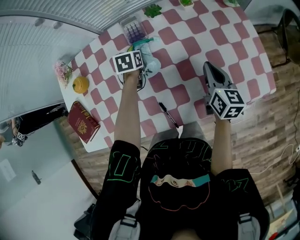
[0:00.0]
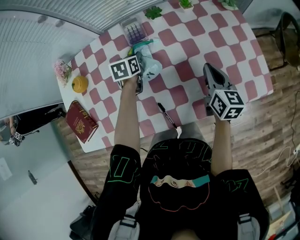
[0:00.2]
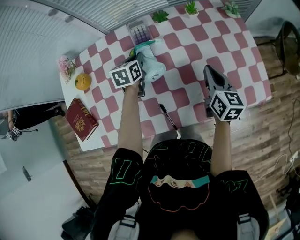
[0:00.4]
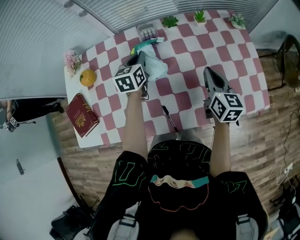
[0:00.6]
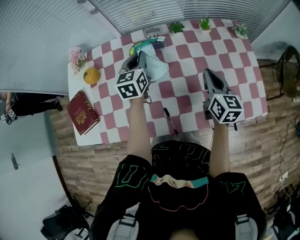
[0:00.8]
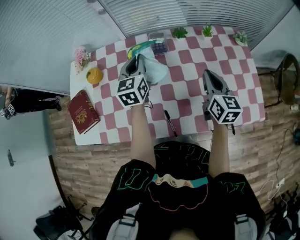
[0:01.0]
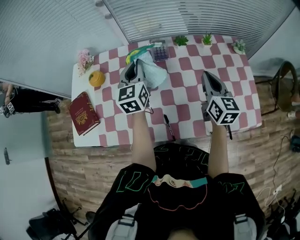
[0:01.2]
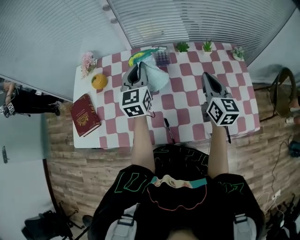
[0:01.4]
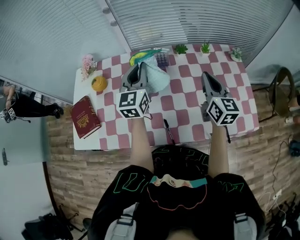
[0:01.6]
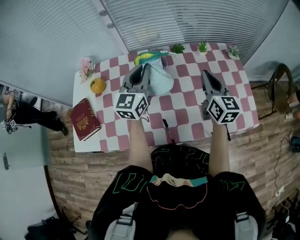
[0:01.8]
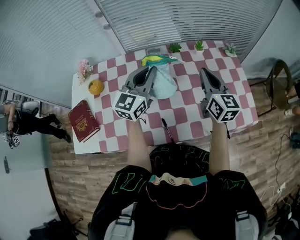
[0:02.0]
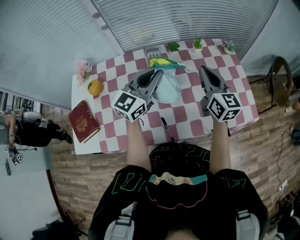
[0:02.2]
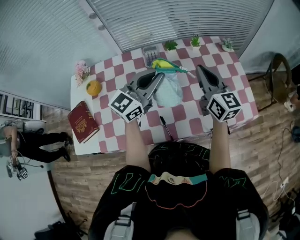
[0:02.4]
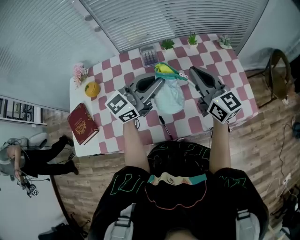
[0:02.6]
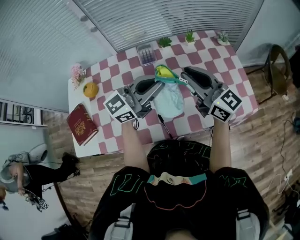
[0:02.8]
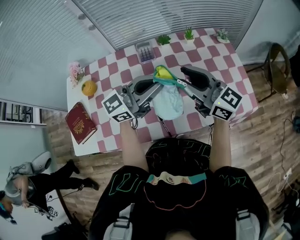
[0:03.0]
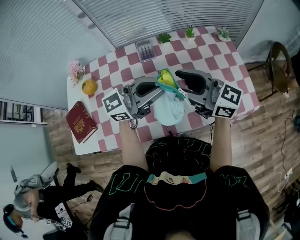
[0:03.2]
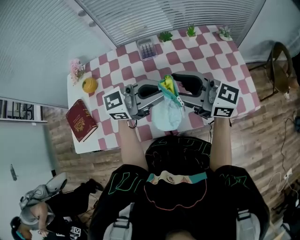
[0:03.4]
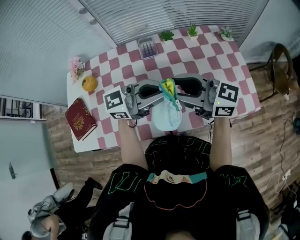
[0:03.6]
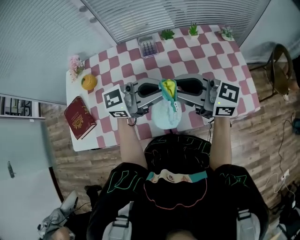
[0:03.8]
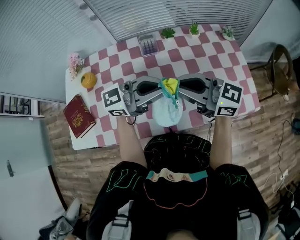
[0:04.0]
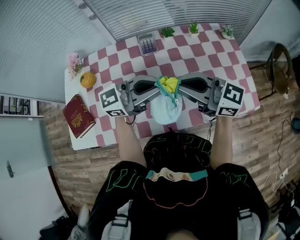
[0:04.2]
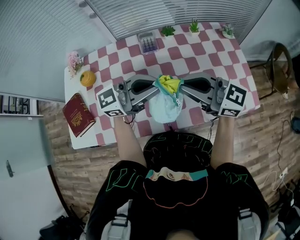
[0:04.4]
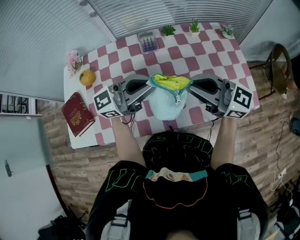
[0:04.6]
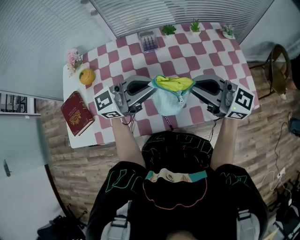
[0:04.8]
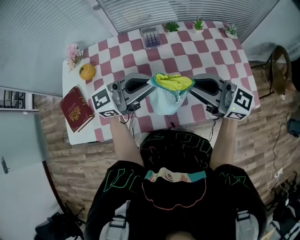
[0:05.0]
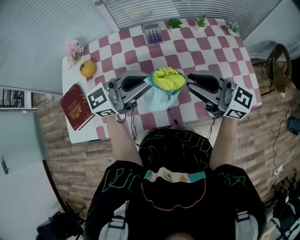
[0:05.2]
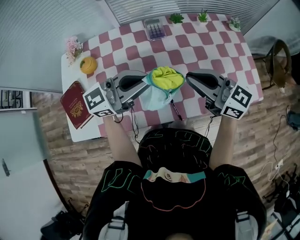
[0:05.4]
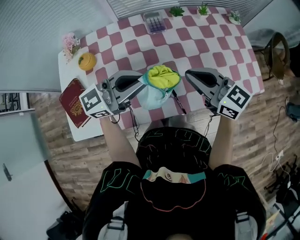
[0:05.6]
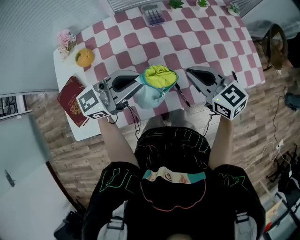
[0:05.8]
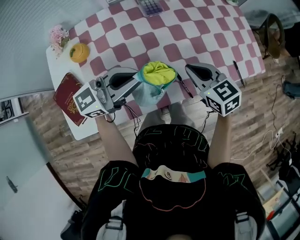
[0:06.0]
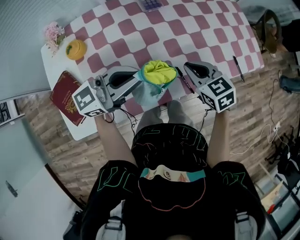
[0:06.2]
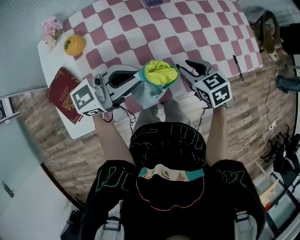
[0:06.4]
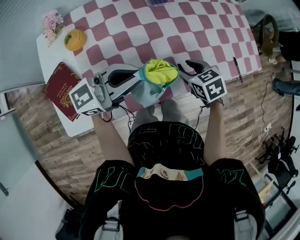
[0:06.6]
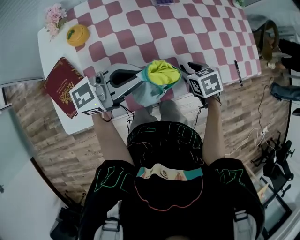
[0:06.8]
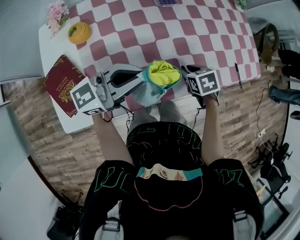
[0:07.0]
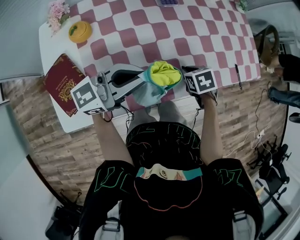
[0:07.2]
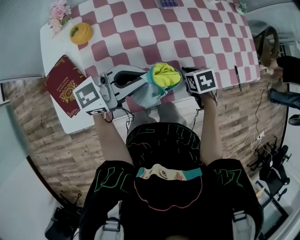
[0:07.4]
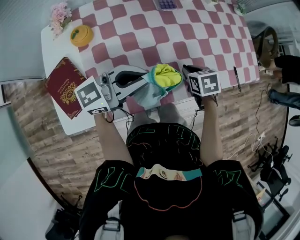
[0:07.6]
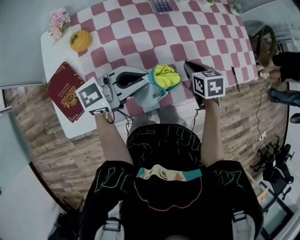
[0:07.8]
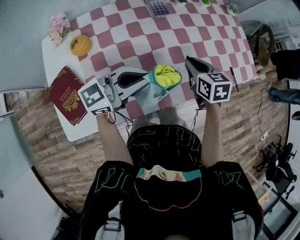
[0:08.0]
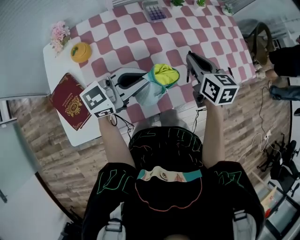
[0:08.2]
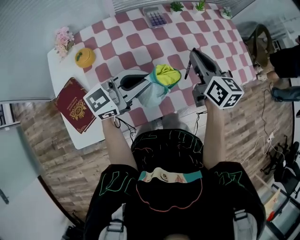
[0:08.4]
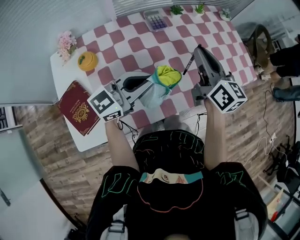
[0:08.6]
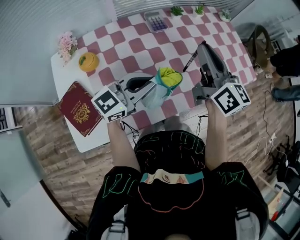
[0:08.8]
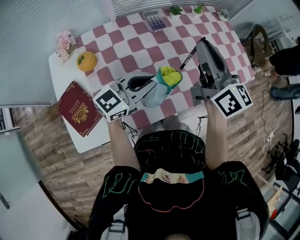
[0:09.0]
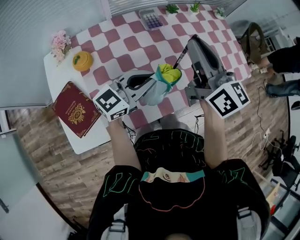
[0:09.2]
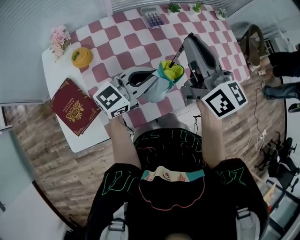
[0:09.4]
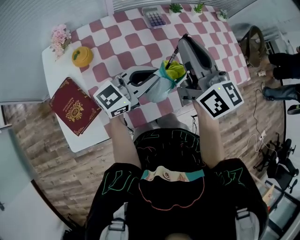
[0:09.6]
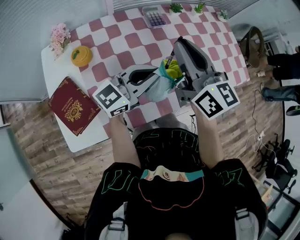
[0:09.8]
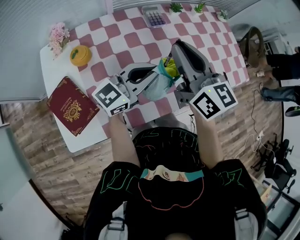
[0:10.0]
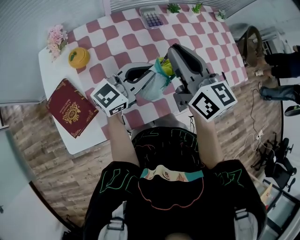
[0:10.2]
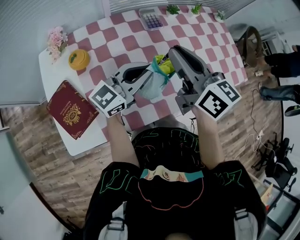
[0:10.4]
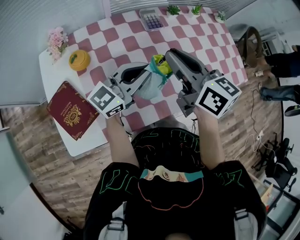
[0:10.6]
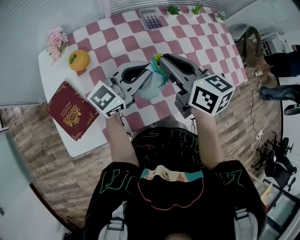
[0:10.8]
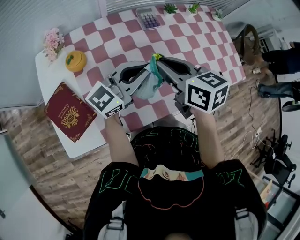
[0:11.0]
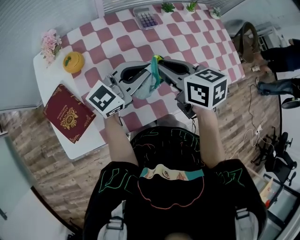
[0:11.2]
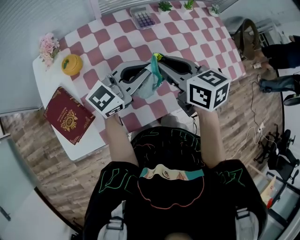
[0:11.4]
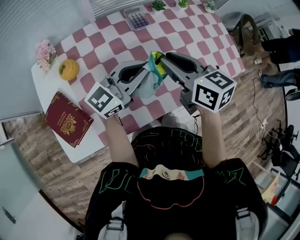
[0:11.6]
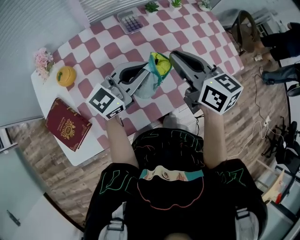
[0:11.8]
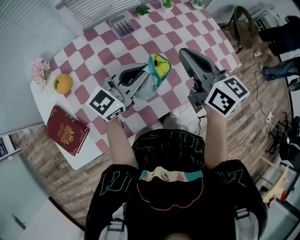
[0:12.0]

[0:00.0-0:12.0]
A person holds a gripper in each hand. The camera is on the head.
0.0 to 1.6 s: The left gripper heads upward, covering approximately 25 cm, and tips its fingers upward by roughly 60 degrees. Meanwhile the right gripper is displaced upward and to the left by roughly 15 cm, and rotates approximately 20 degrees.
1.6 to 3.0 s: The left gripper shifts about 15 cm to the right and backward, and swivels roughly 60 degrees. The right gripper heads backward and upward, covering roughly 10 cm, swivels about 40 degrees, and opens.
3.0 to 4.4 s: The right gripper moves approximately 5 cm, and closes up.
4.4 to 6.0 s: The left gripper ends up approximately 20 cm from where it was. The right gripper travels downward by approximately 15 cm, and points its fingers about 40 degrees further downward.
6.0 to 7.6 s: The right gripper is displaced downward by about 10 cm, angles its fingers downward, by about 30 degrees, and opens and closes again.
7.6 to 9.0 s: The right gripper is displaced upward by about 30 cm, and tilts its fingers roughly 70 degrees upward.
9.0 to 10.4 s: The right gripper is displaced to the left by some 5 cm.
10.4 to 12.0 s: The two grippers go roughly 10 cm to the right.

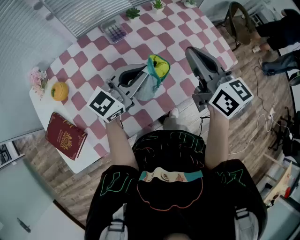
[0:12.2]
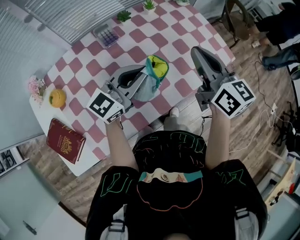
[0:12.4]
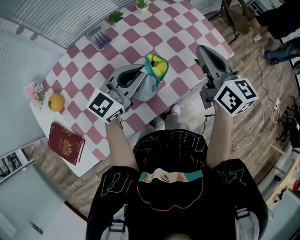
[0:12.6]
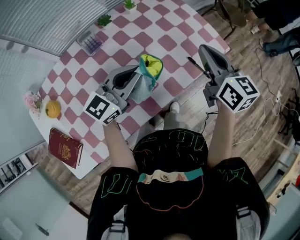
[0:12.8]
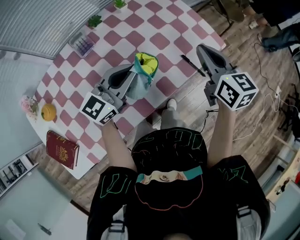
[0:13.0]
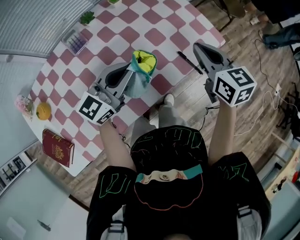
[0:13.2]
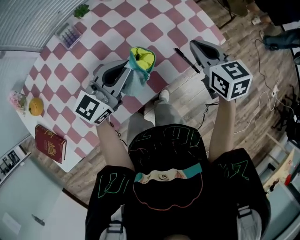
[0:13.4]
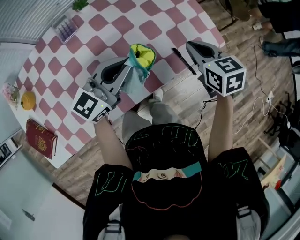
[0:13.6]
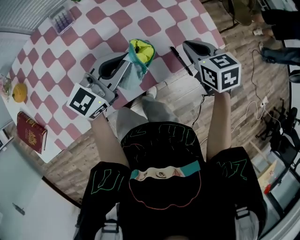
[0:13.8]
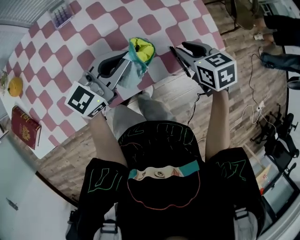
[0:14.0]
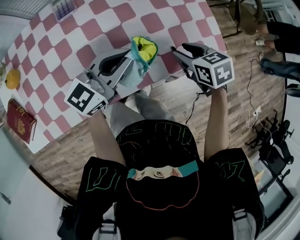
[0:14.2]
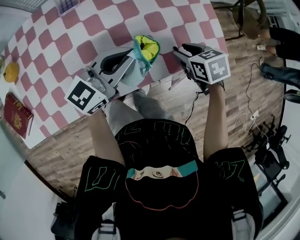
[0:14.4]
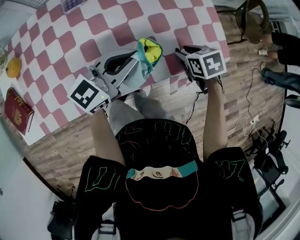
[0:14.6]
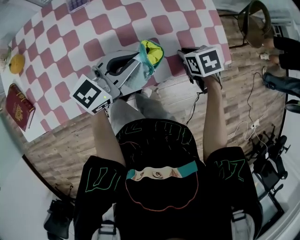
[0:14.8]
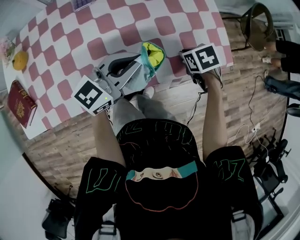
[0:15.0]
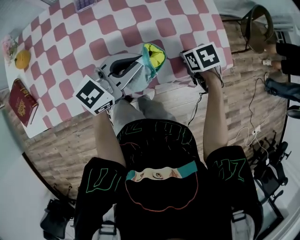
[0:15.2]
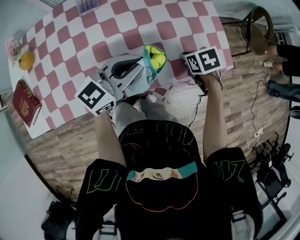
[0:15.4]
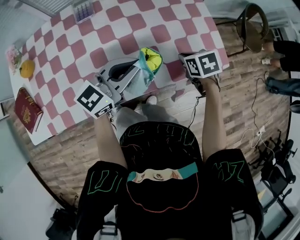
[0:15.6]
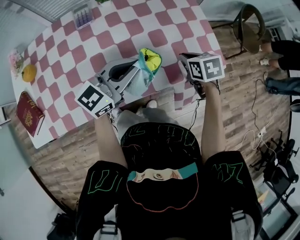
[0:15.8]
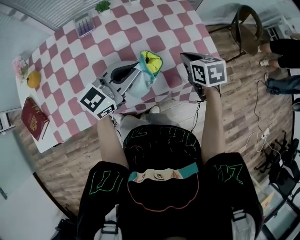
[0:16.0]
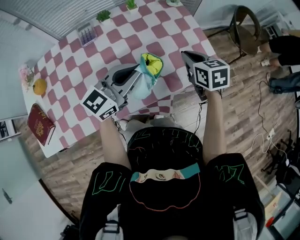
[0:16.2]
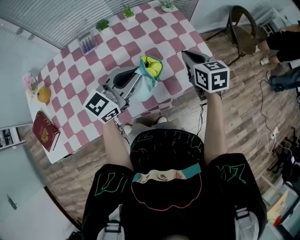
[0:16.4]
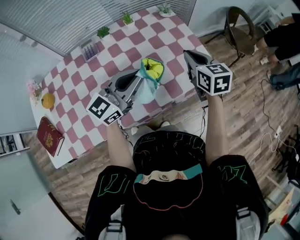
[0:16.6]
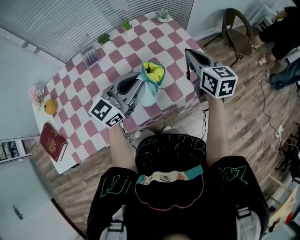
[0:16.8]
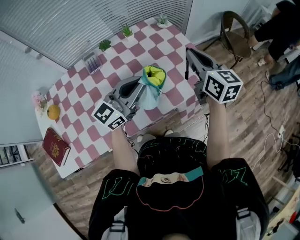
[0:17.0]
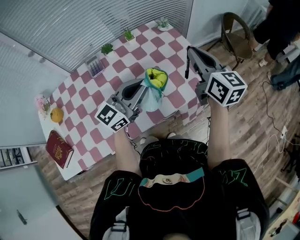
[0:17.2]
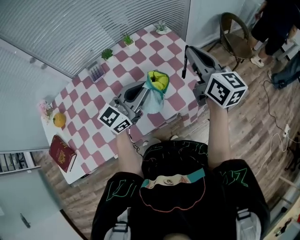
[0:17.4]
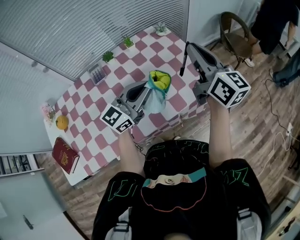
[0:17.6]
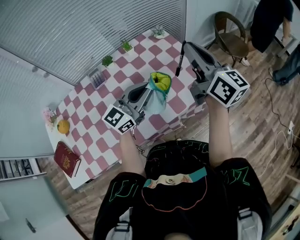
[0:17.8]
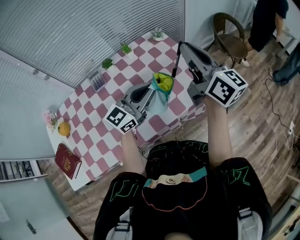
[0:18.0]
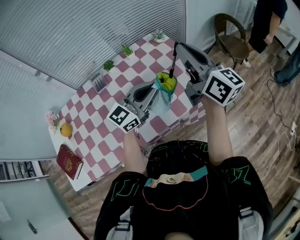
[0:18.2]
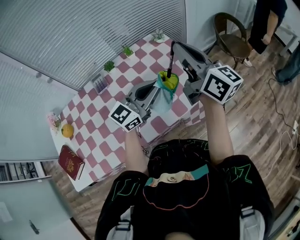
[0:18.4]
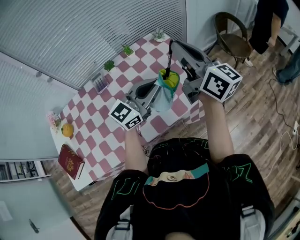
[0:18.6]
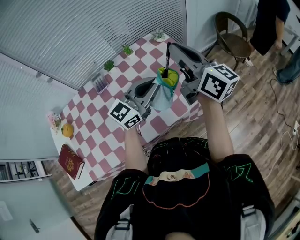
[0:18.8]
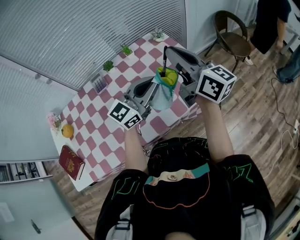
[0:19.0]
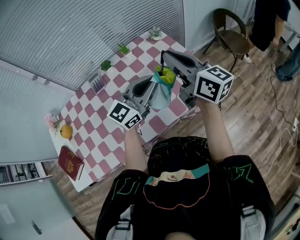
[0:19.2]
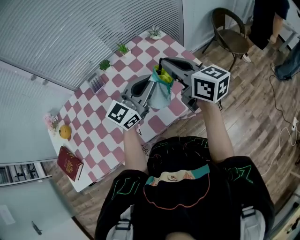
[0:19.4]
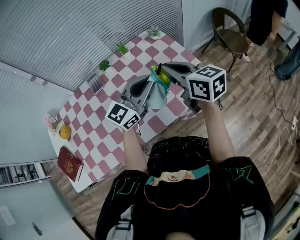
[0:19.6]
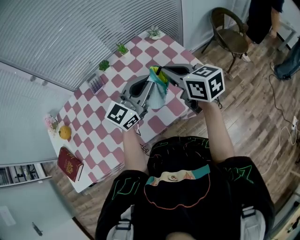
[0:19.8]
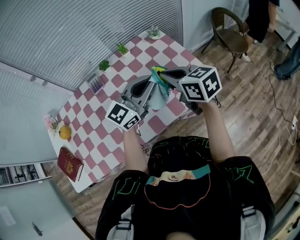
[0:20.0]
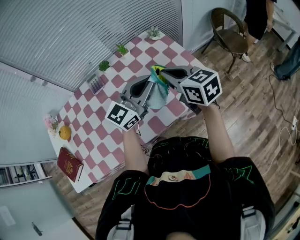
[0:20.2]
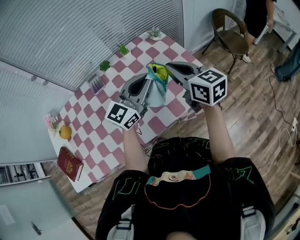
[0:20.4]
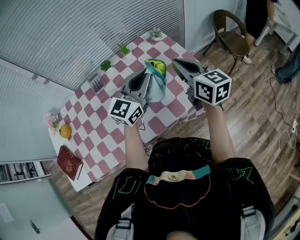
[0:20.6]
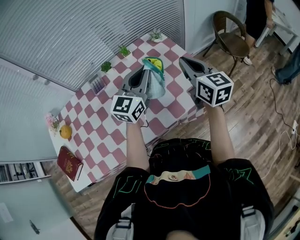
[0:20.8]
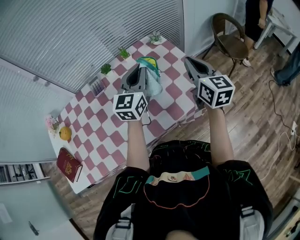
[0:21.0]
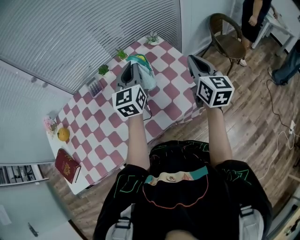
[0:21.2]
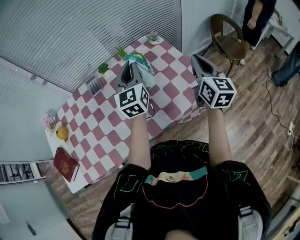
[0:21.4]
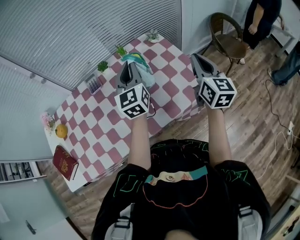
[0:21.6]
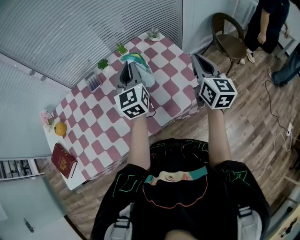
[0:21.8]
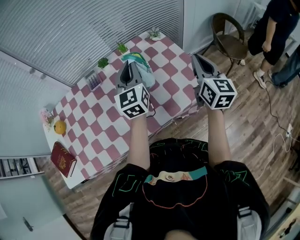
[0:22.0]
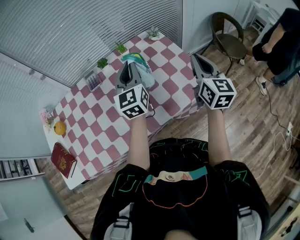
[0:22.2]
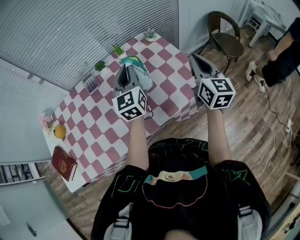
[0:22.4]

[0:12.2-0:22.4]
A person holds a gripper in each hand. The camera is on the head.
12.2 to 13.6 s: The left gripper shifts approximately 15 cm to the right and forward; the right gripper heads to the right, downward and forward, covering roughly 30 cm, and tips its fingers downward by approximately 30 degrees.
13.6 to 15.2 s: The right gripper goes roughly 15 cm downward, turns by approximately 40 degrees, and opens, then closes again.
15.2 to 16.6 s: The right gripper shifts some 20 cm upward, and points its fingers about 50 degrees further upward; the left gripper is displaced upward by about 10 cm.
16.6 to 18.0 s: The left gripper moves about 5 cm, while the right gripper moves upward, about 20 cm, and tips its fingers upward by approximately 40 degrees.
18.0 to 19.4 s: The right gripper heads downward and to the left, covering approximately 10 cm.
19.4 to 21.0 s: The left gripper goes some 5 cm forward, and rotates some 30 degrees. The right gripper is displaced to the right by approximately 10 cm, and changes its angle by some 20 degrees.
21.0 to 22.4 s: The left gripper rotates approximately 20 degrees.

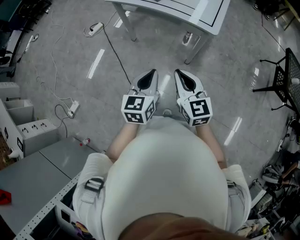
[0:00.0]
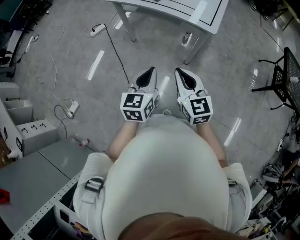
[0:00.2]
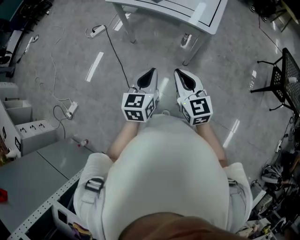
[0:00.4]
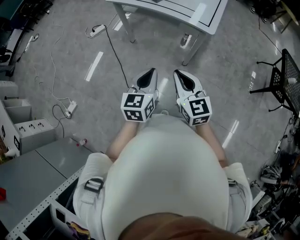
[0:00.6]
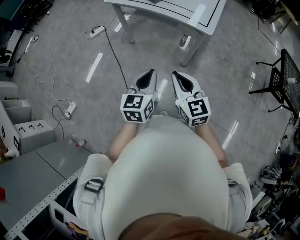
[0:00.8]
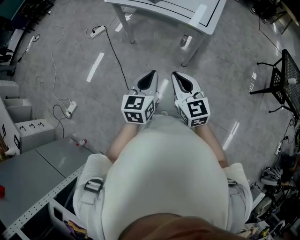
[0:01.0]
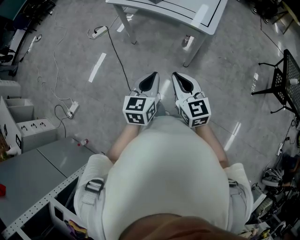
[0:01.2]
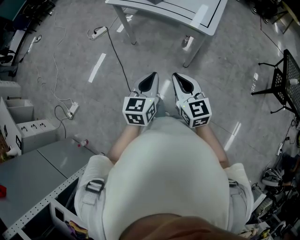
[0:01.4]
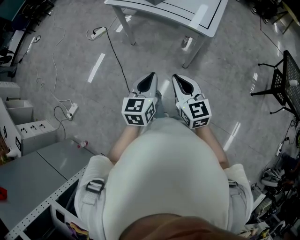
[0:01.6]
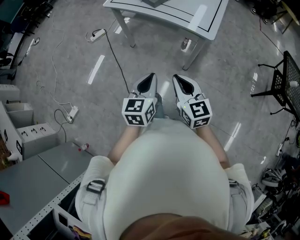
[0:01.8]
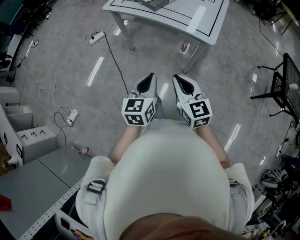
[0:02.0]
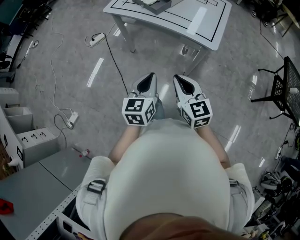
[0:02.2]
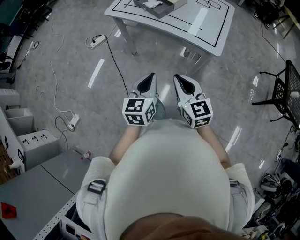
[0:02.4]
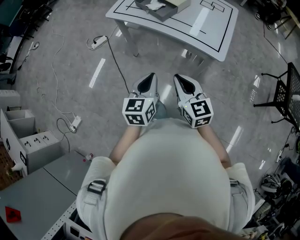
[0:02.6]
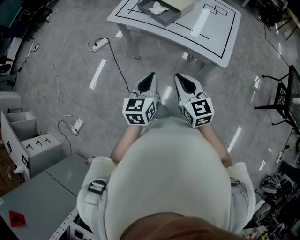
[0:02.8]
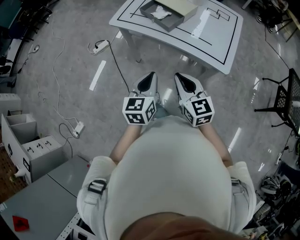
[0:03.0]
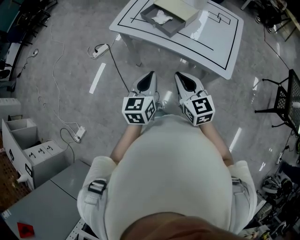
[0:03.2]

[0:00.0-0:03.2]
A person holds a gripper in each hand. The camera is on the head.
0.0 to 1.6 s: The grippers make only small movements.
1.6 to 3.2 s: The grippers both shift forward by roughly 25 cm.
